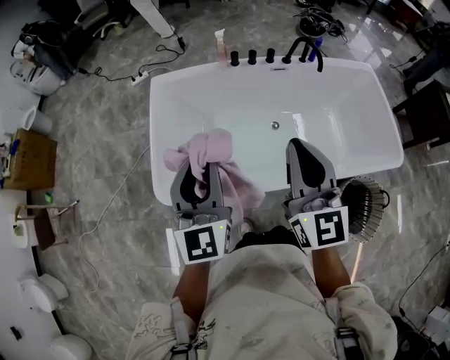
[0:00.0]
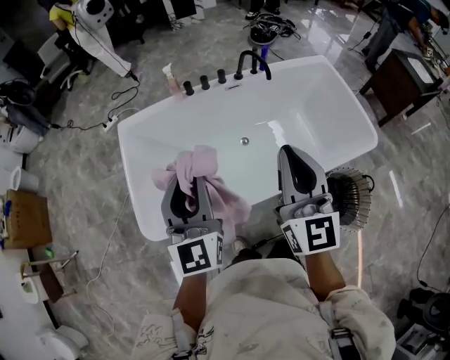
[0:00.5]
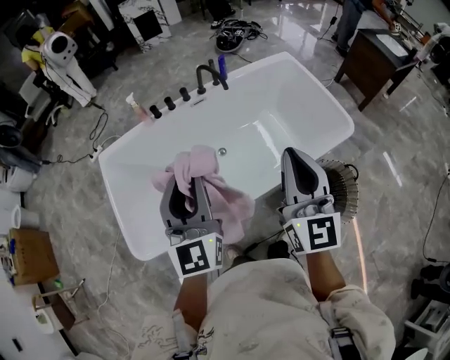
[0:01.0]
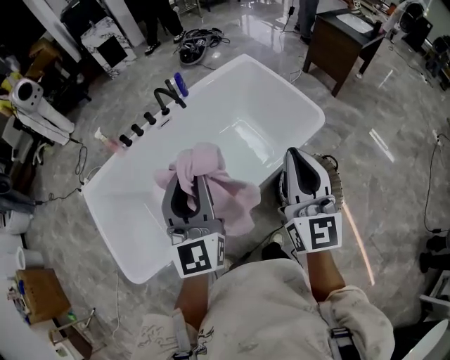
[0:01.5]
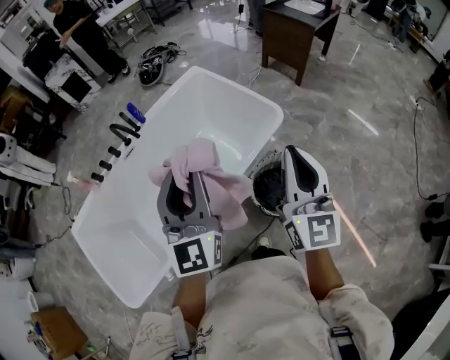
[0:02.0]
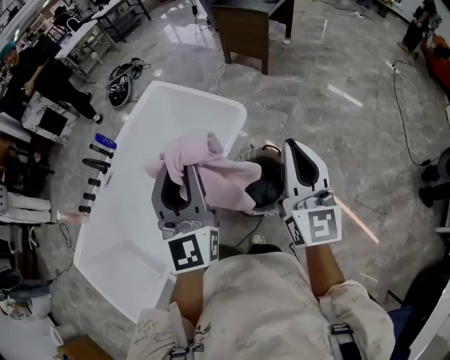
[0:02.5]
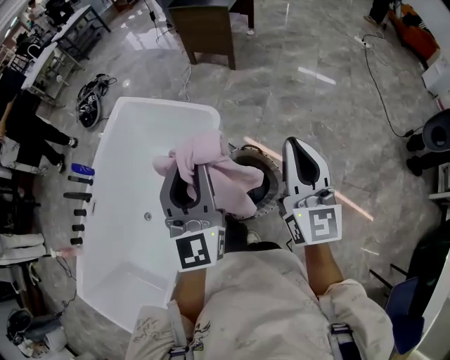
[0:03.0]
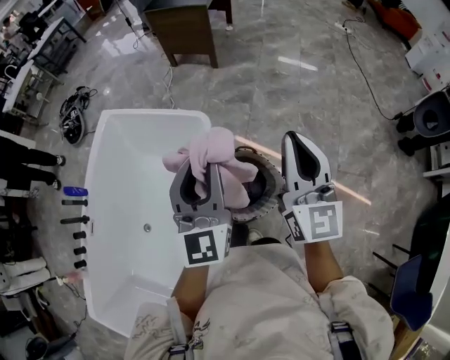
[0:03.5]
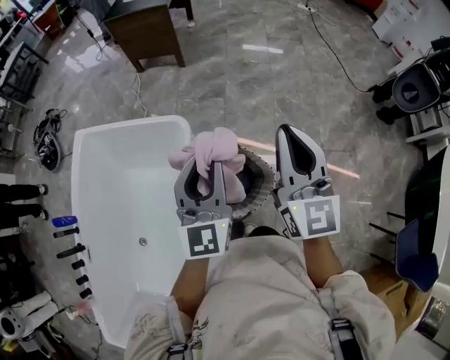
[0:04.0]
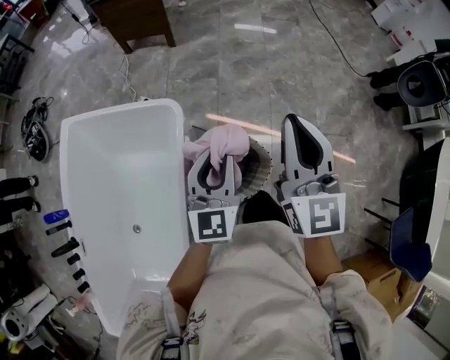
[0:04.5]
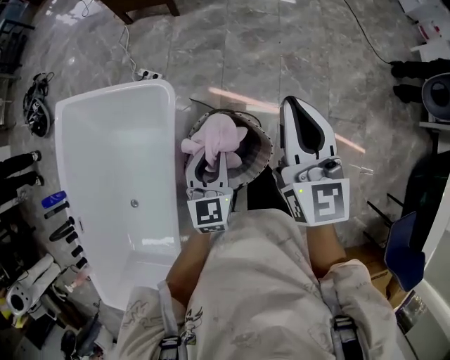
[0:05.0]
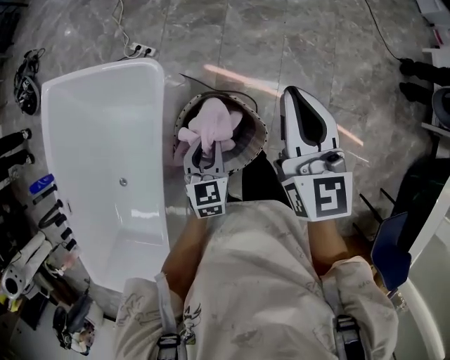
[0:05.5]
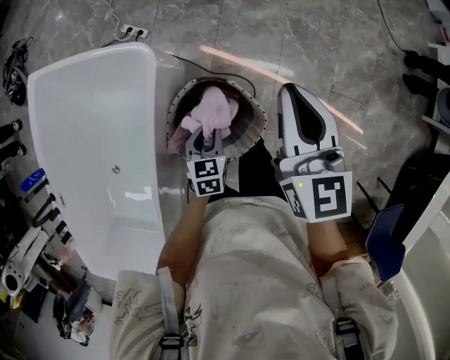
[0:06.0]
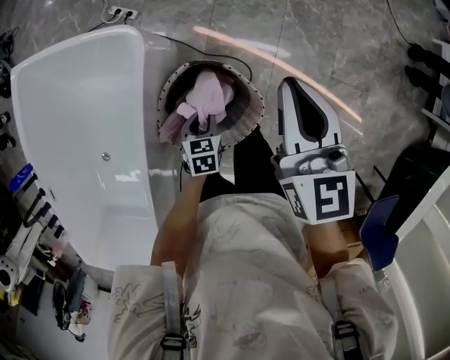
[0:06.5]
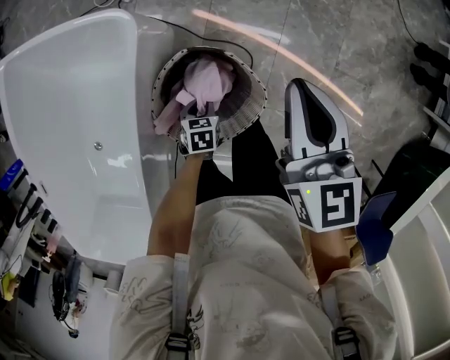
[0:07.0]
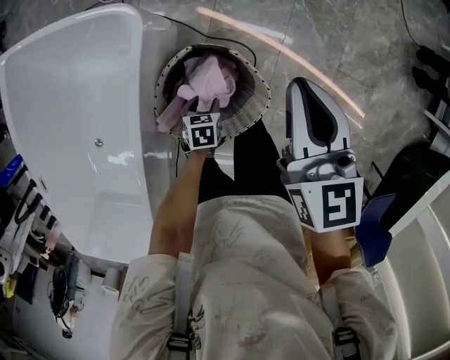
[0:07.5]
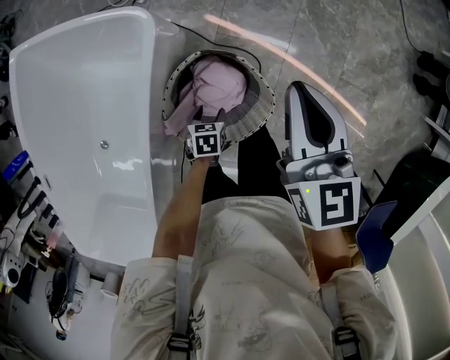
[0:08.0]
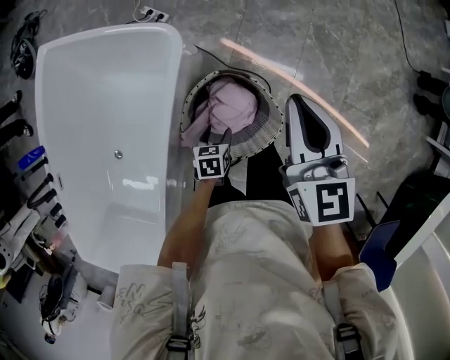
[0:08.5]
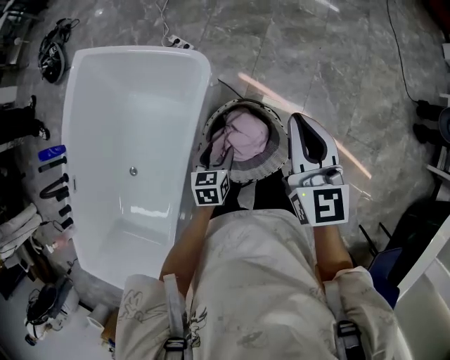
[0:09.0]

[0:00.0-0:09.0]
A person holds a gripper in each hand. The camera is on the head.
0:00.0 to 0:02.0: The two grippers travel together, some 60 cm. The left gripper turns by about 40 degrees; the right gripper swivels about 50 degrees.
0:02.0 to 0:04.5: The left gripper shifts by roughly 40 cm, and rotates approximately 60 degrees. The right gripper changes place by about 25 cm, and turns by about 40 degrees.
0:04.5 to 0:07.0: The left gripper heads downward, covering approximately 50 cm, and angles its fingers downward, by approximately 60 degrees. Meanwhile the right gripper heads downward and forward, covering roughly 30 cm, and changes its angle by roughly 30 degrees.
0:07.0 to 0:09.0: The left gripper shifts roughly 20 cm upward and to the left, turns by some 20 degrees, and opens its fingers; the right gripper shifts approximately 15 cm upward and to the left.

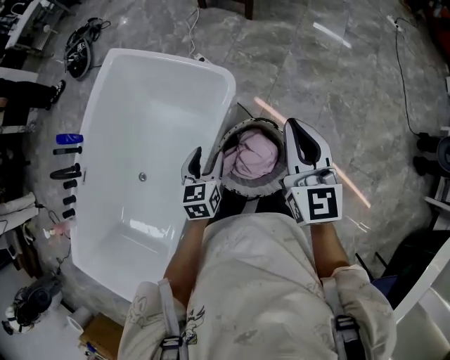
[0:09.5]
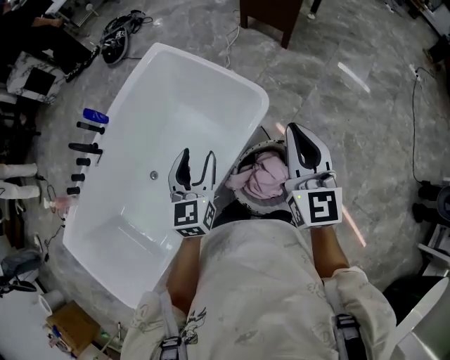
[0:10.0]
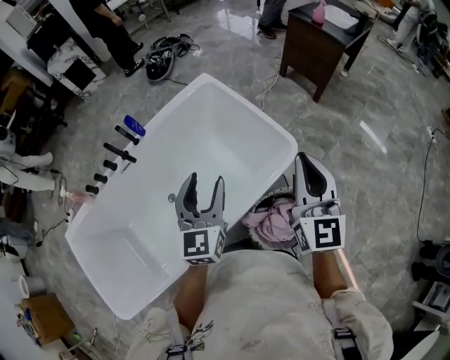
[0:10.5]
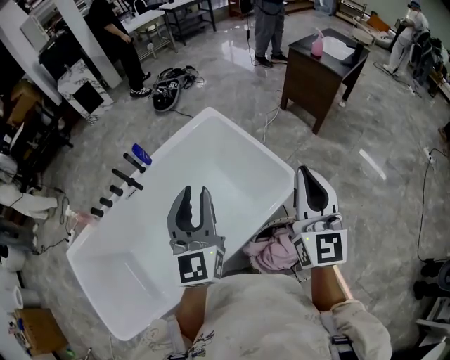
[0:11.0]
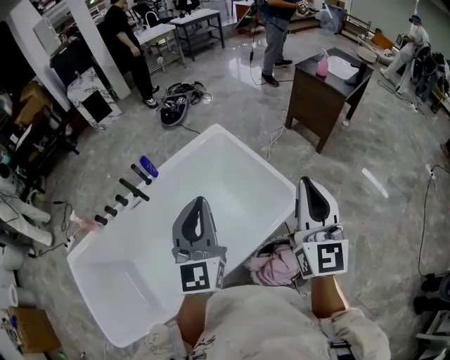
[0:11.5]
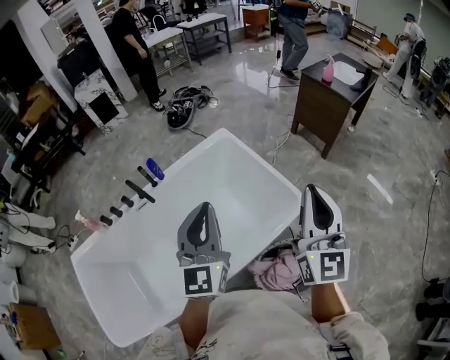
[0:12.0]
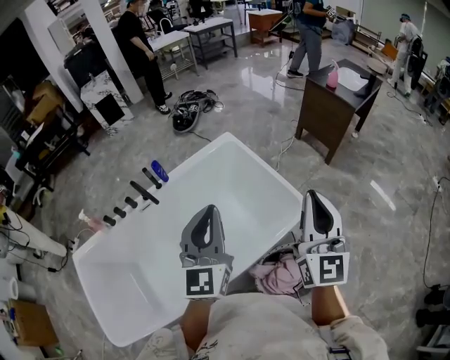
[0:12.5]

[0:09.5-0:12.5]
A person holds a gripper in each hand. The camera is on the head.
0:09.5 to 0:11.0: The left gripper moves upward, approximately 35 cm, angles its fingers upward, by some 40 degrees, and closes up; the right gripper moves some 25 cm, and swivels about 30 degrees.
0:11.0 to 0:12.5: The grippers stay close to where they were, moving slightly.

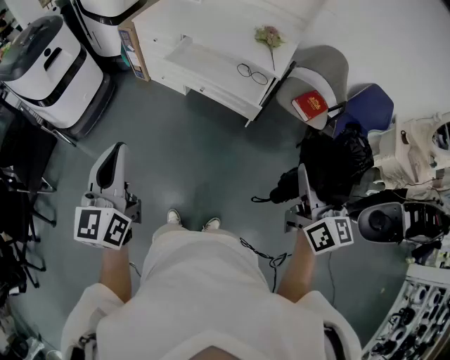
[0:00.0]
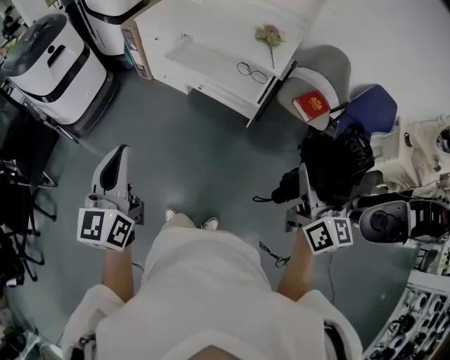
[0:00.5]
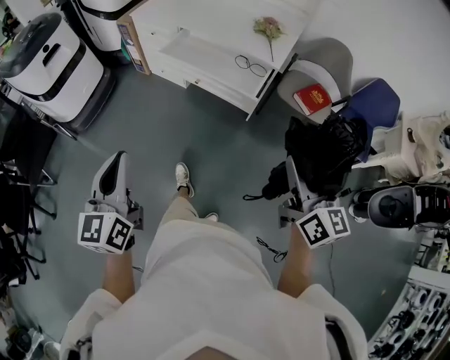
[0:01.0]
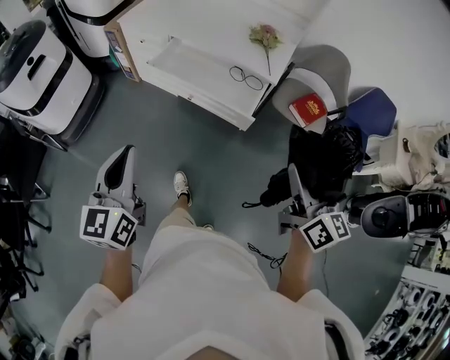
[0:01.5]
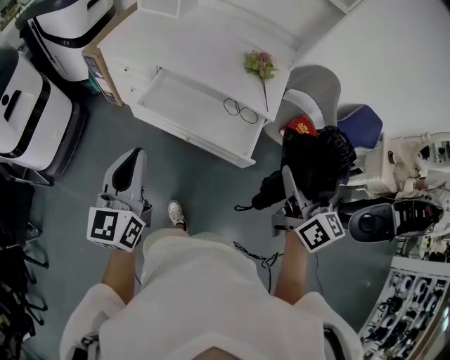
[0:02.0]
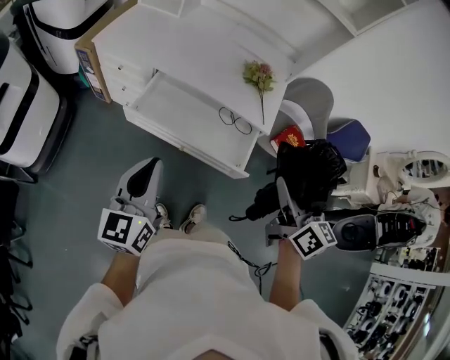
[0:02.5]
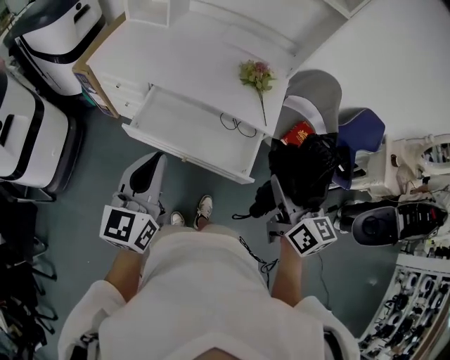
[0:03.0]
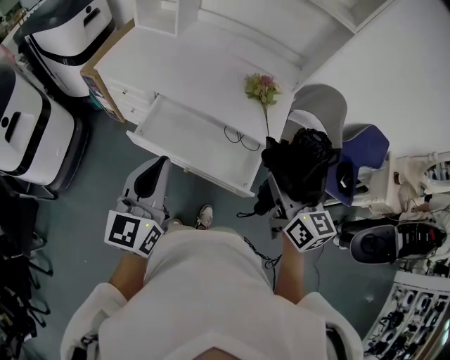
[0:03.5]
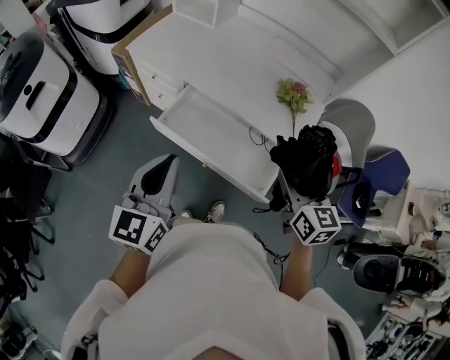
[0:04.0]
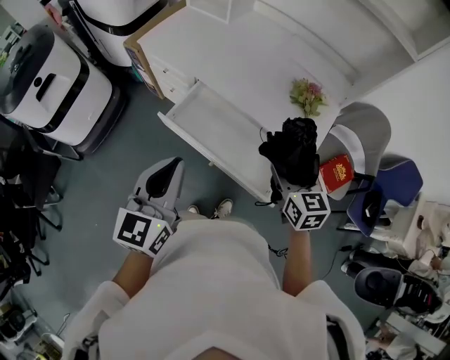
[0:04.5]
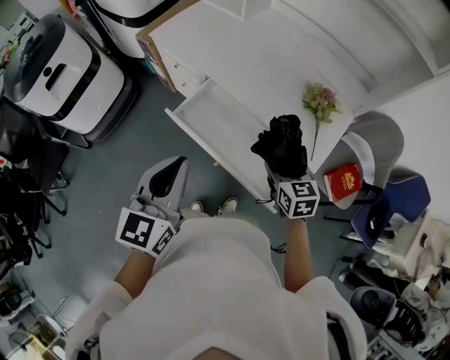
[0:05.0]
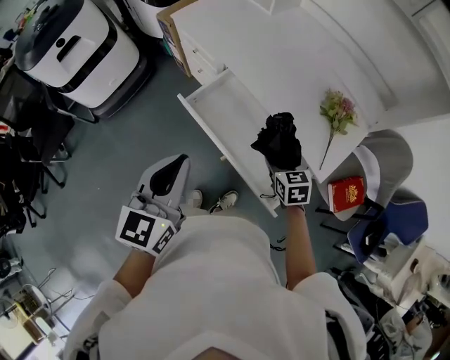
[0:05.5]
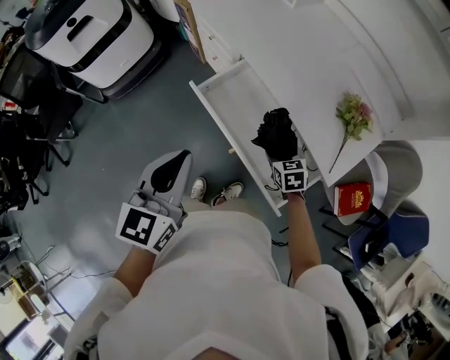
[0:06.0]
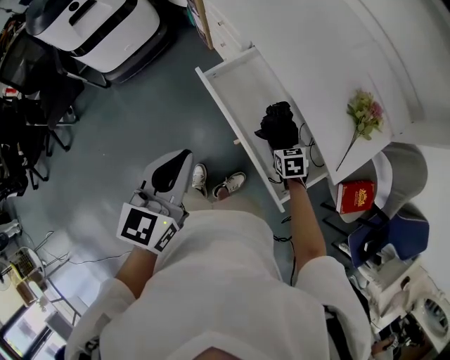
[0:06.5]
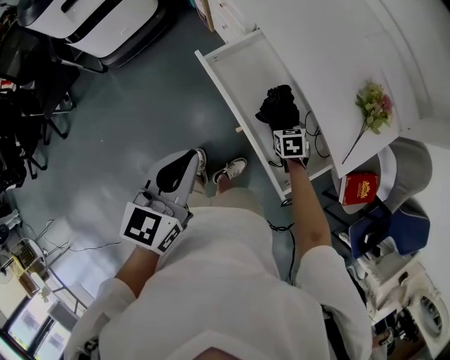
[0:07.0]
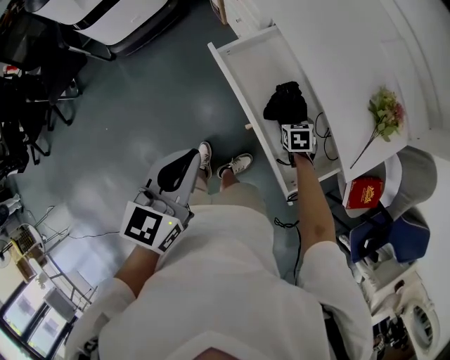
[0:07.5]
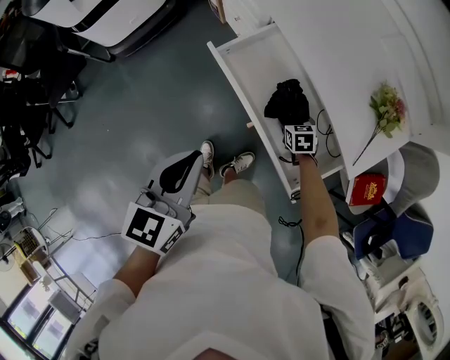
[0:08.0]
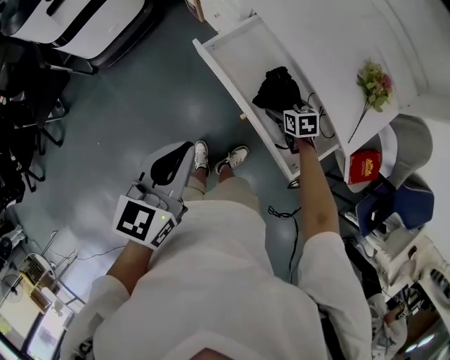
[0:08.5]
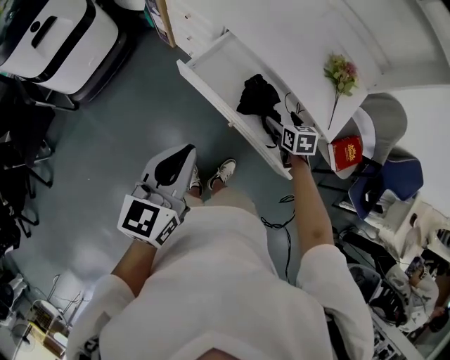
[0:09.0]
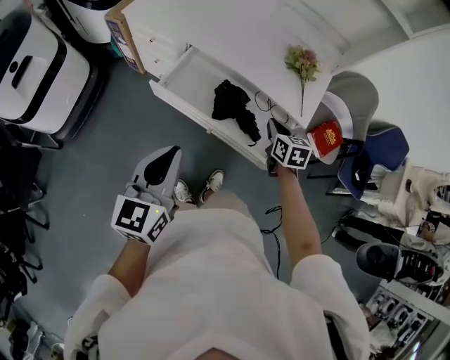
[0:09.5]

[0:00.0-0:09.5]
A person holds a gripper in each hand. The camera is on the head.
0:00.0 to 0:02.0: The two grippers go roughly 30 cm forward.
0:02.0 to 0:04.0: The right gripper moves forward and downward, some 20 cm, and swivels about 20 degrees; the left gripper moves forward and to the right, approximately 10 cm.
0:04.0 to 0:05.5: The right gripper heads downward and forward, covering approximately 25 cm, and changes its angle by some 30 degrees.
0:05.5 to 0:07.5: The left gripper moves downward, some 10 cm. Meanwhile the right gripper travels downward by roughly 20 cm, and turns by approximately 20 degrees.
0:07.5 to 0:09.5: The right gripper travels upward by some 20 cm, turns by approximately 40 degrees, and closes up; the left gripper moves roughly 5 cm, and turns by about 30 degrees.

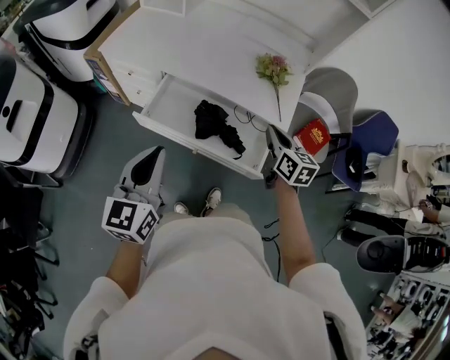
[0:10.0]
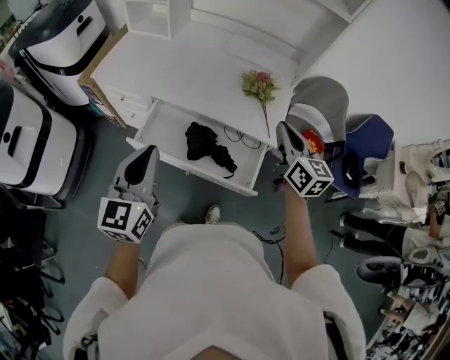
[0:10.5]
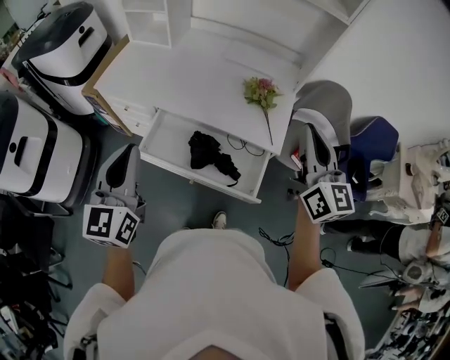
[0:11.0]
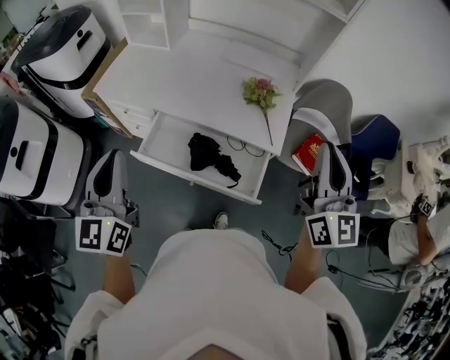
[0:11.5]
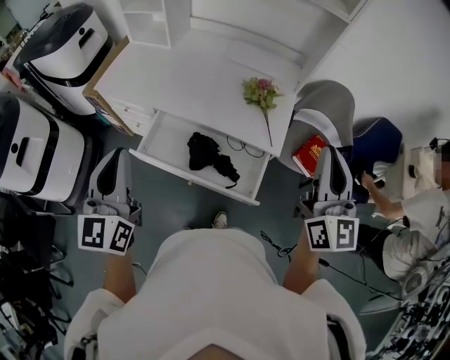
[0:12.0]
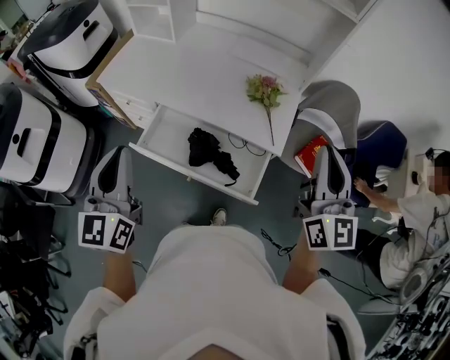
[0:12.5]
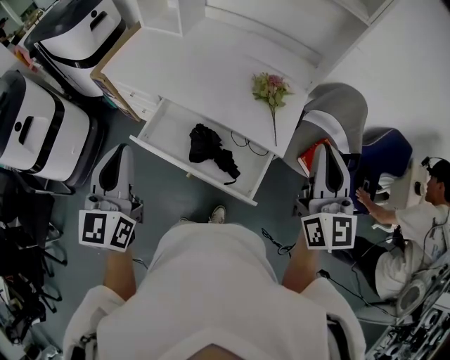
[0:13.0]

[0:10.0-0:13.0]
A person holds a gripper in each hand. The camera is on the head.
0:10.0 to 0:11.5: The left gripper travels upward and forward by some 15 cm. Meanwhile the right gripper travels upward by about 25 cm, and tips its fingers upward by roughly 30 degrees.
0:11.5 to 0:13.0: The right gripper changes place by some 5 cm.

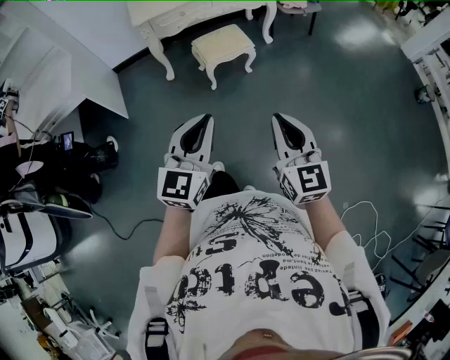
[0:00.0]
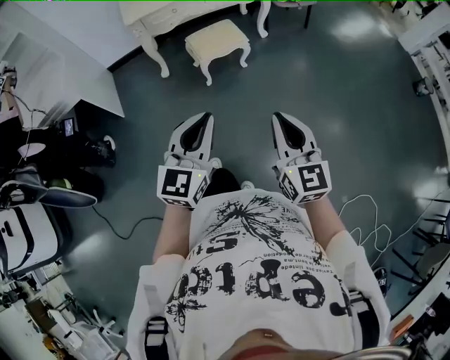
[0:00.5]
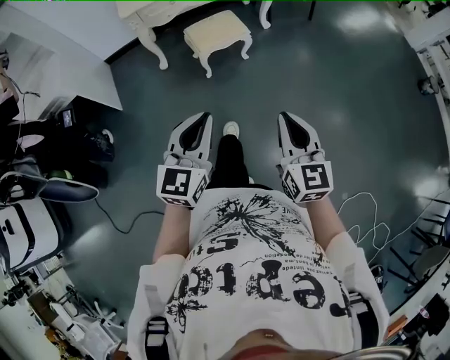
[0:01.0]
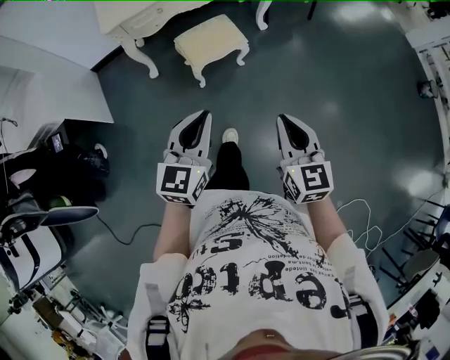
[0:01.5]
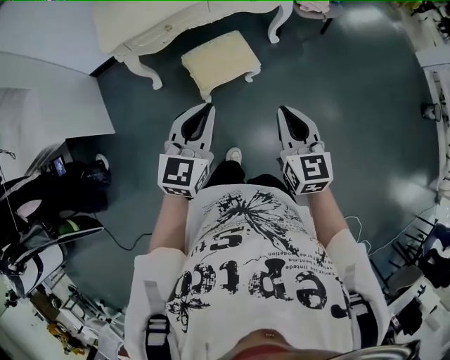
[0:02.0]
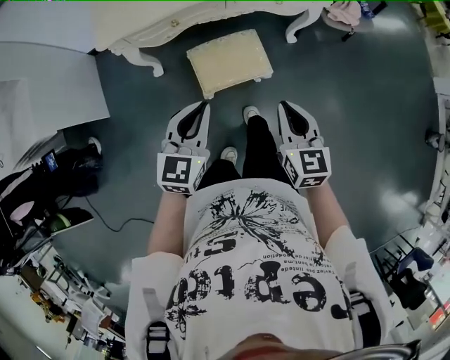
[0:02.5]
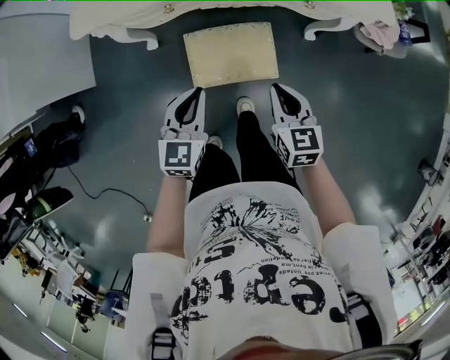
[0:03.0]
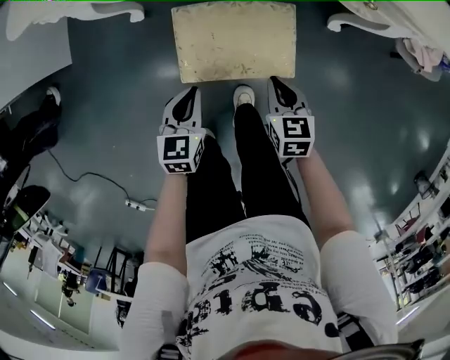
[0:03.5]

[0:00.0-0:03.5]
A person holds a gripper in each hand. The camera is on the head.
0:00.0 to 0:02.0: The two grippers travel together, forward, roughly 40 cm.
0:02.0 to 0:03.5: The grippers both shift downward by some 50 cm. The right gripper turns by approximately 40 degrees, while the left gripper rotates about 40 degrees.
